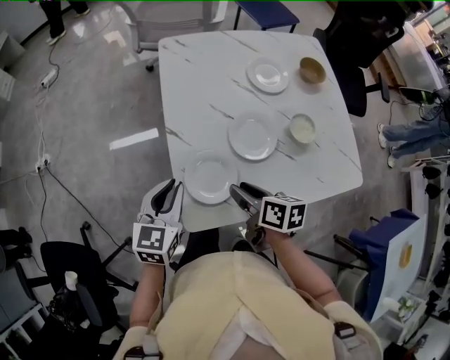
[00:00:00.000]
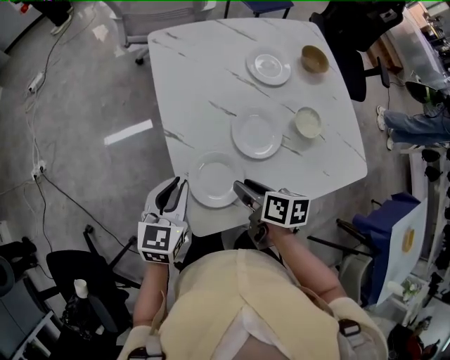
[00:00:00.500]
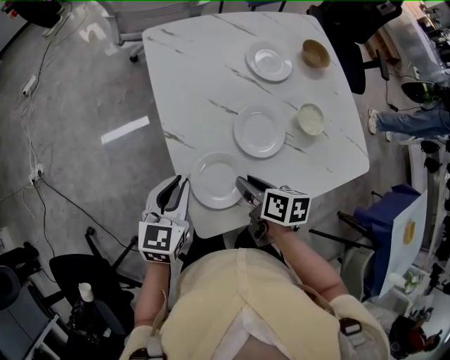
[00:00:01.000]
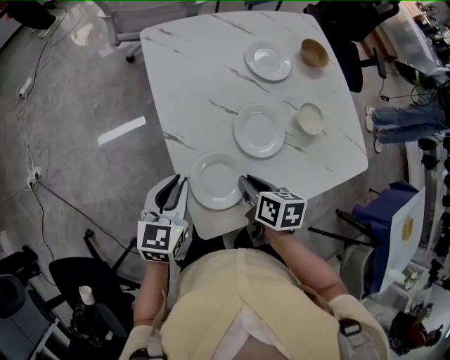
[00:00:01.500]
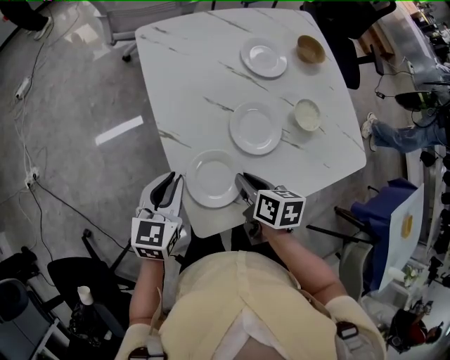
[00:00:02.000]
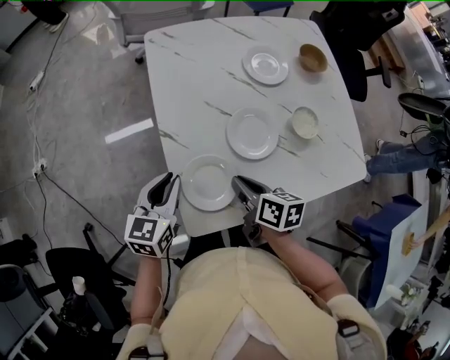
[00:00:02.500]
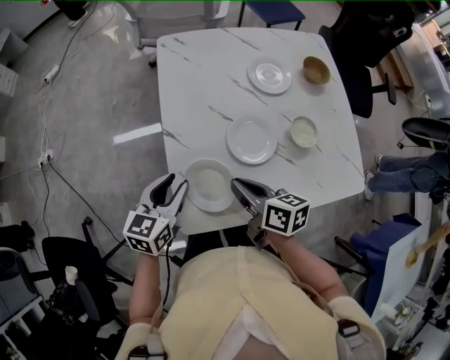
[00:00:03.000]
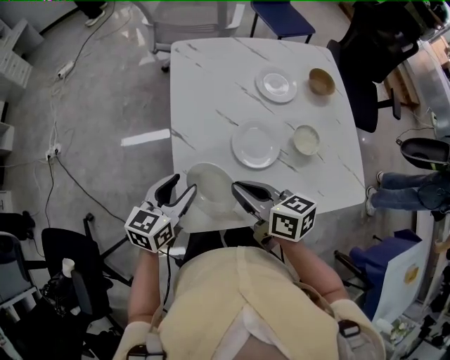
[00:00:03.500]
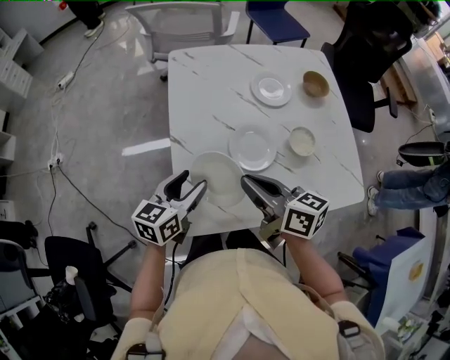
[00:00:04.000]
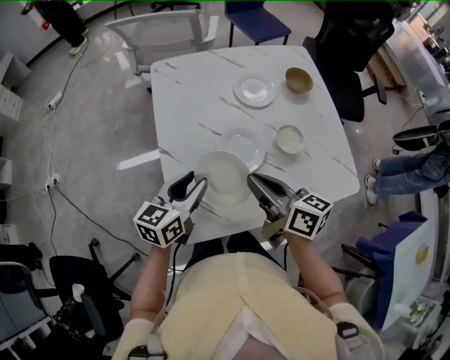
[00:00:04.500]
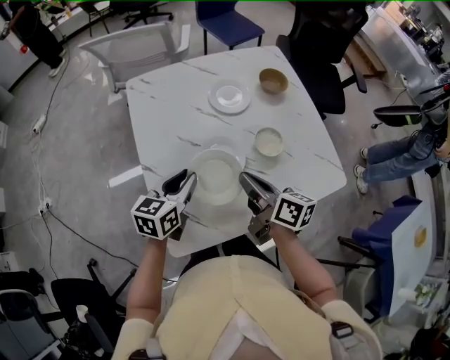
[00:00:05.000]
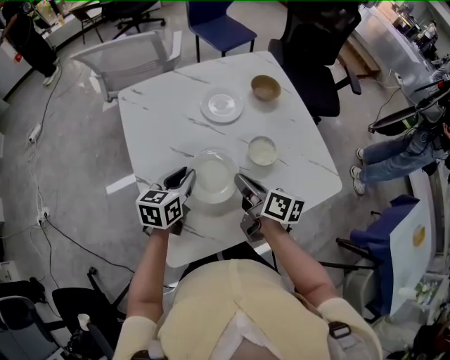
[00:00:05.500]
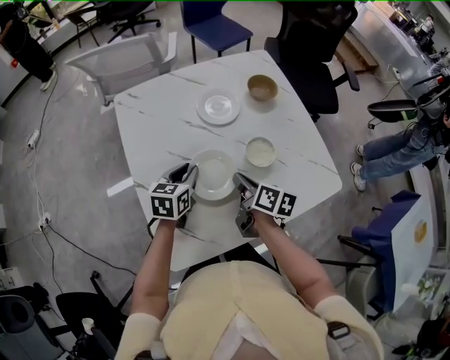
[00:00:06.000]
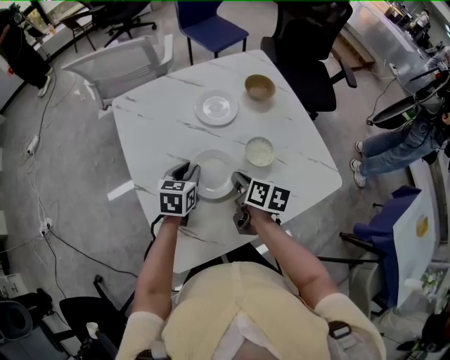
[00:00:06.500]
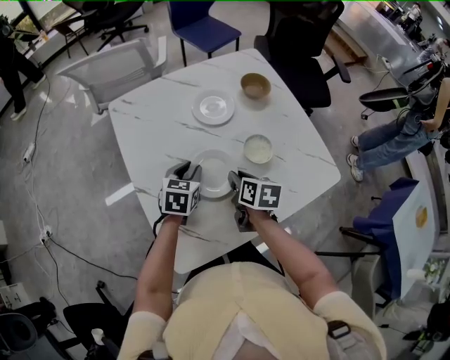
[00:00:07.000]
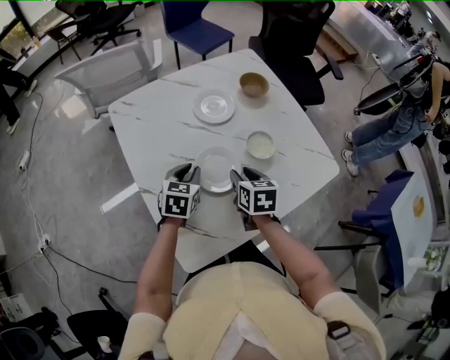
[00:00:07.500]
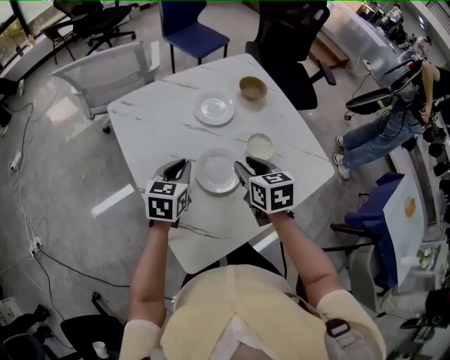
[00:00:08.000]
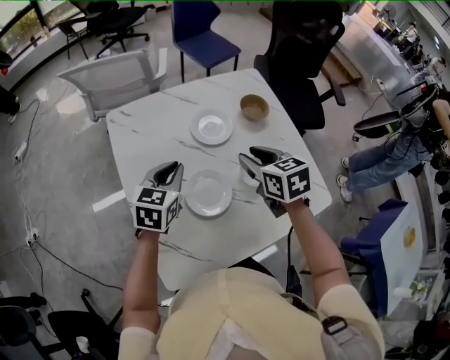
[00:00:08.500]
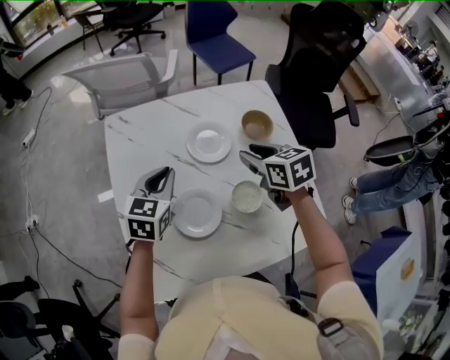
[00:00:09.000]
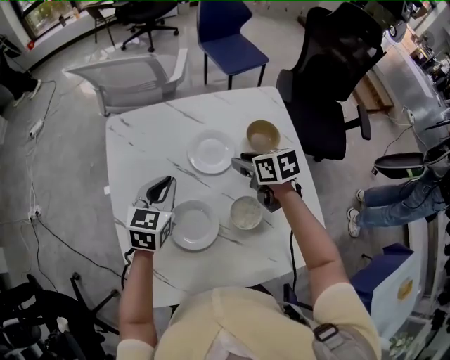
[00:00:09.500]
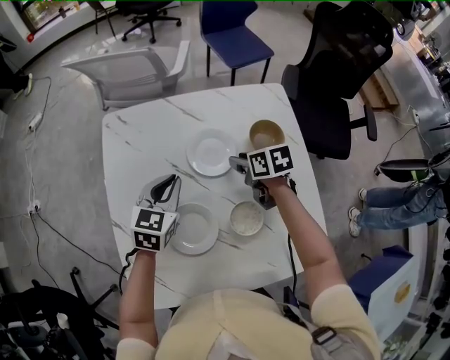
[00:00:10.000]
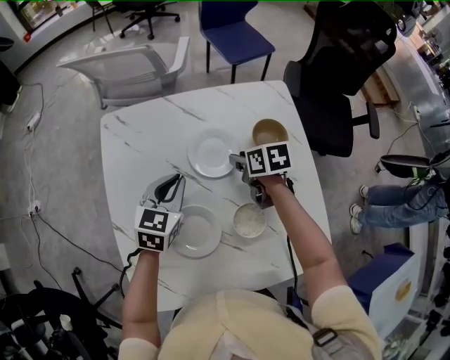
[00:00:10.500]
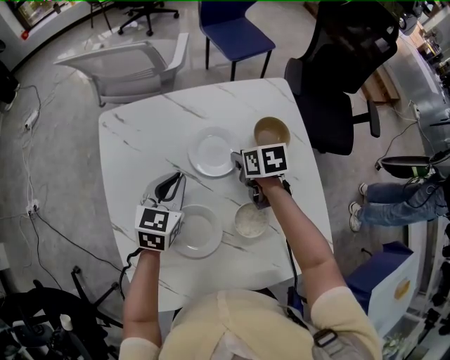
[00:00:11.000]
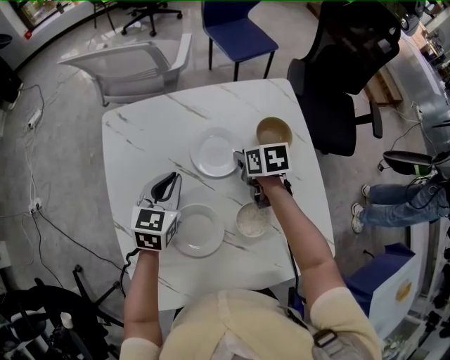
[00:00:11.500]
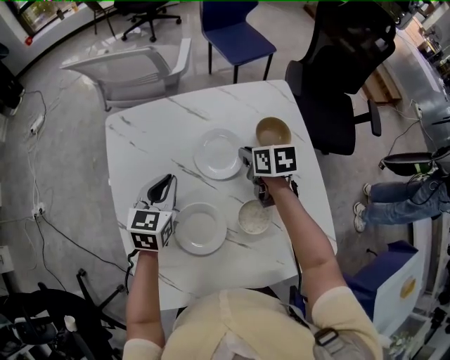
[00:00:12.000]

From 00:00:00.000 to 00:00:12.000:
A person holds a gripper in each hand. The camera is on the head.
From 00:00:00.000 to 00:00:02.000: The right gripper closes up. Meanwhile the left gripper shifts by some 5 cm.
From 00:00:02.000 to 00:00:04.000: The left gripper is displaced to the right by some 5 cm, and opens its fingers. The right gripper travels upward by some 15 cm, and points its fingers approximately 30 degrees further upward.
From 00:00:04.000 to 00:00:06.000: The right gripper shifts about 20 cm to the right, downward and forward, and rotates some 40 degrees, while the left gripper shifts about 15 cm forward and to the right, and closes up.
From 00:00:06.000 to 00:00:08.000: The left gripper ends up approximately 5 cm from where it was. The right gripper heads upward, covering roughly 5 cm, changes its angle by some 40 degrees, and opens.
From 00:00:08.000 to 00:00:10.000: The left gripper shifts by approximately 15 cm. The right gripper moves roughly 25 cm, and changes its angle by about 30 degrees.
From 00:00:10.000 to 00:00:12.000: The right gripper closes up.

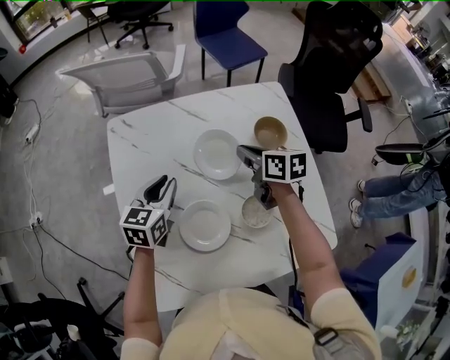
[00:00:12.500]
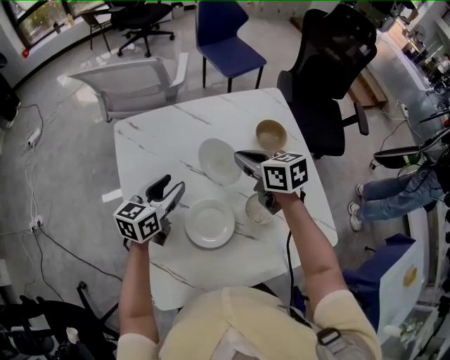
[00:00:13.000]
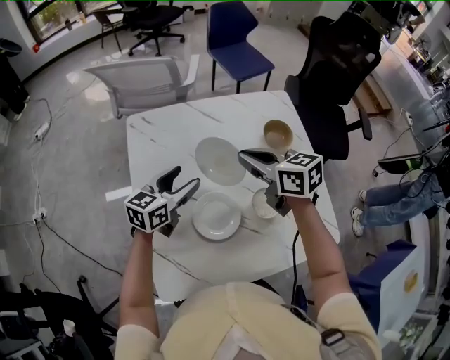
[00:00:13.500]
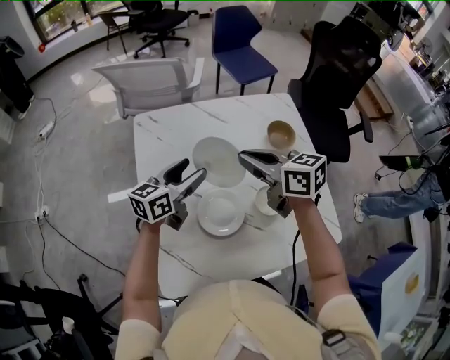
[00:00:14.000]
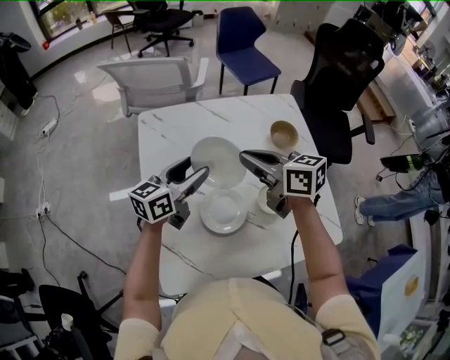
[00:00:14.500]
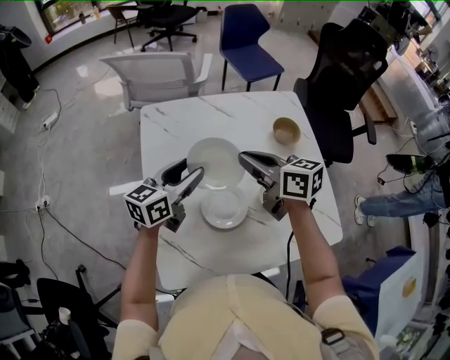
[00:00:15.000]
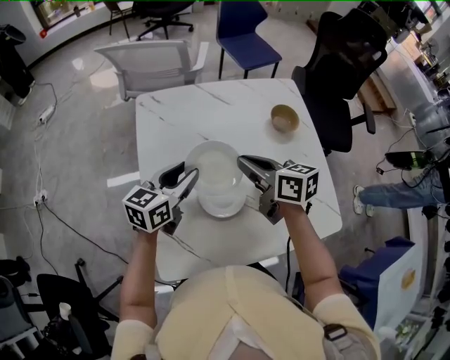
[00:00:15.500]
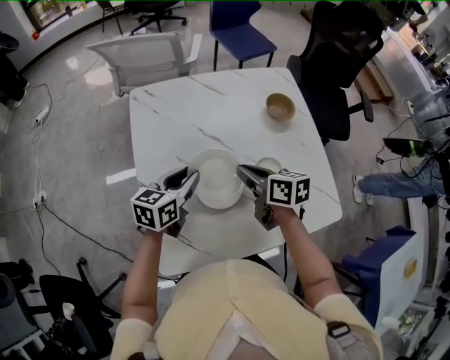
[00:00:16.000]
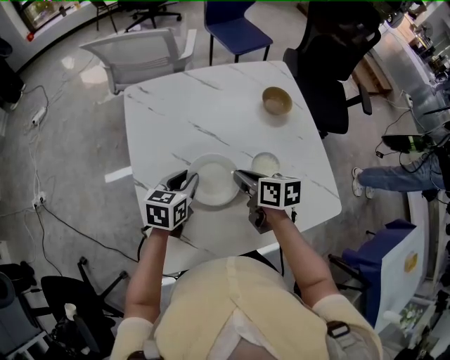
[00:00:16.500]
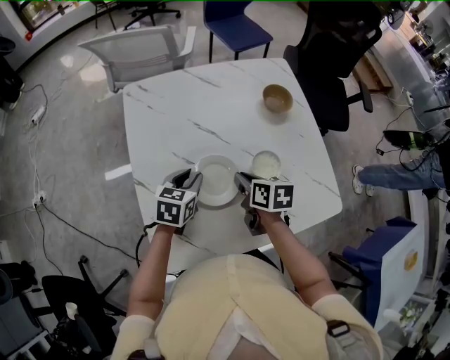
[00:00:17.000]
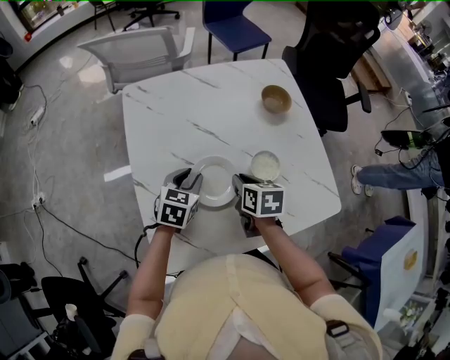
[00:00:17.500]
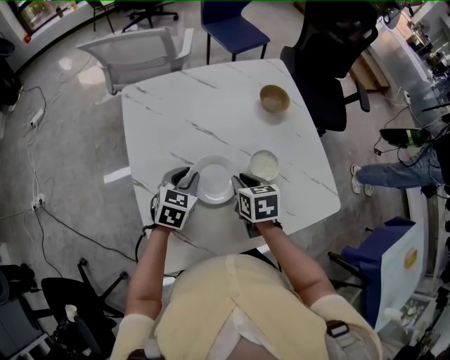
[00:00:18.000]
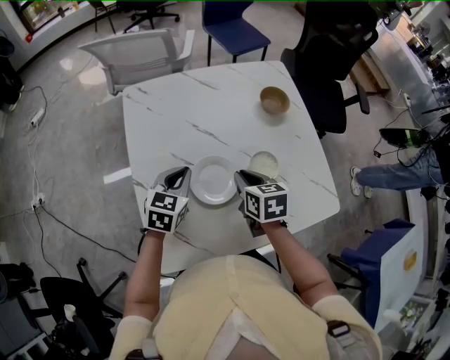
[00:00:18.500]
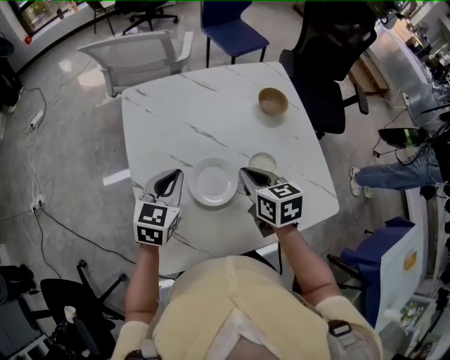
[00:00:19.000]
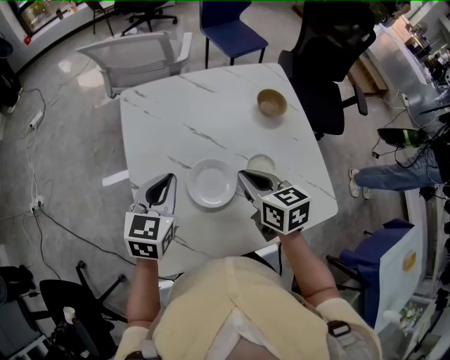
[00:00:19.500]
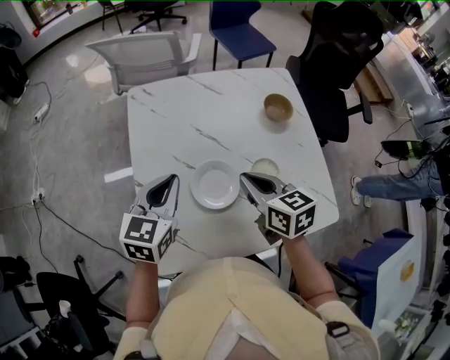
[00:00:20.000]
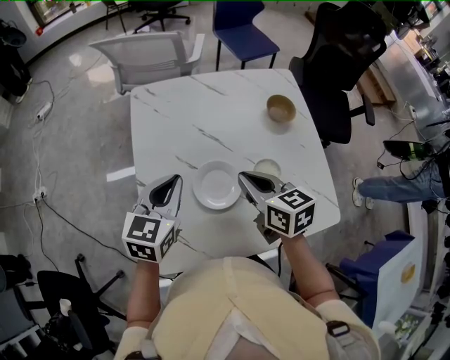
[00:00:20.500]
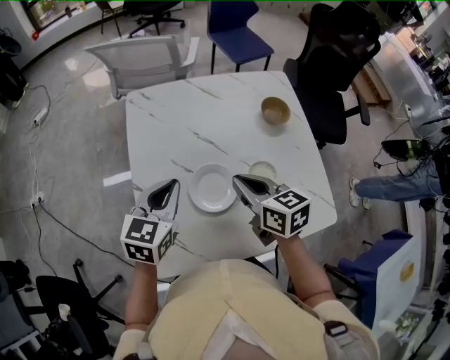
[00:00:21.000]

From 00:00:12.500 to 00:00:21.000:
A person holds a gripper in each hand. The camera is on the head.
From 00:00:12.500 to 00:00:14.500: The left gripper travels upward by some 10 cm, turns by roughly 30 degrees, and opens up. The right gripper travels upward, to the left and backward by about 20 cm, and changes its angle by approximately 20 degrees.
From 00:00:14.500 to 00:00:16.500: Both grippers move downward and backward, approximately 15 cm. The right gripper changes its angle by about 30 degrees. The left gripper rotates approximately 30 degrees, and closes up.
From 00:00:16.500 to 00:00:19.000: The left gripper moves upward, roughly 5 cm, while the right gripper changes place by about 5 cm, and rotates some 20 degrees.
From 00:00:19.000 to 00:00:21.000: The right gripper ends up about 5 cm from where it was. The left gripper shifts by about 5 cm.

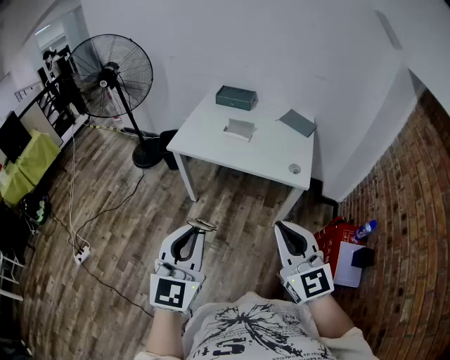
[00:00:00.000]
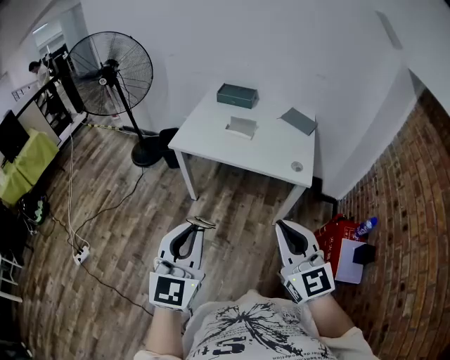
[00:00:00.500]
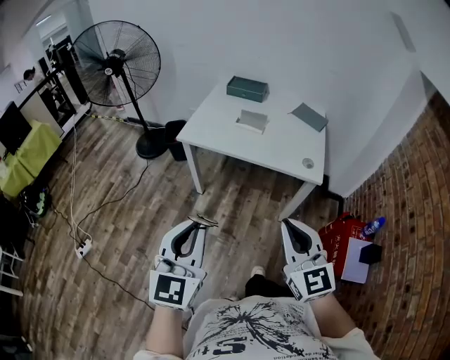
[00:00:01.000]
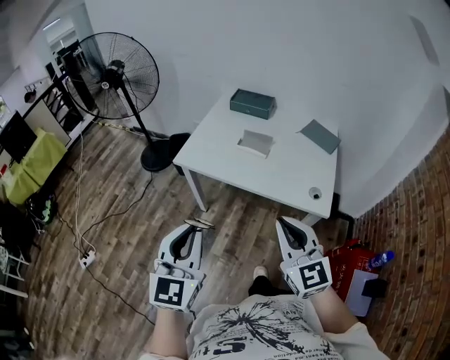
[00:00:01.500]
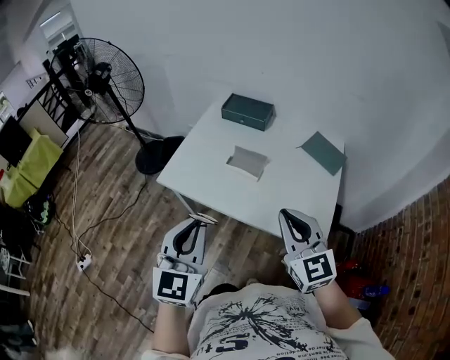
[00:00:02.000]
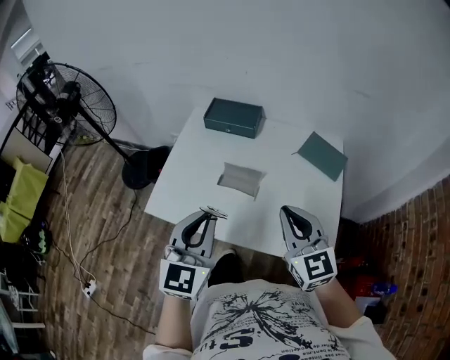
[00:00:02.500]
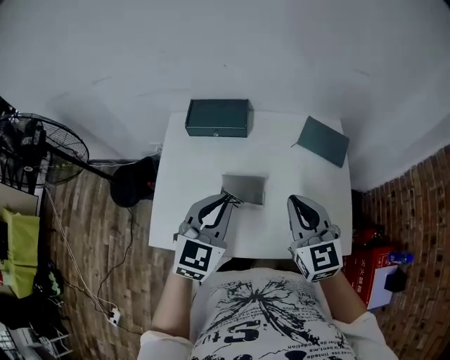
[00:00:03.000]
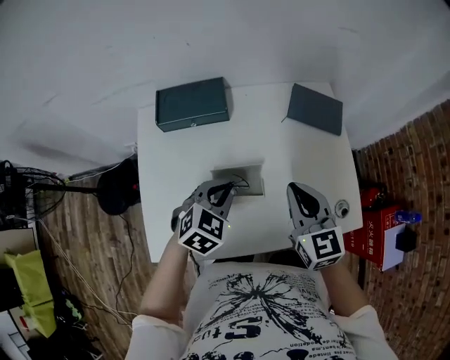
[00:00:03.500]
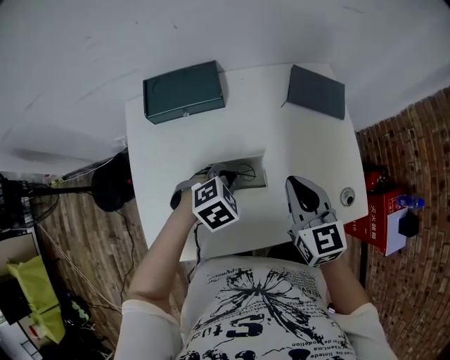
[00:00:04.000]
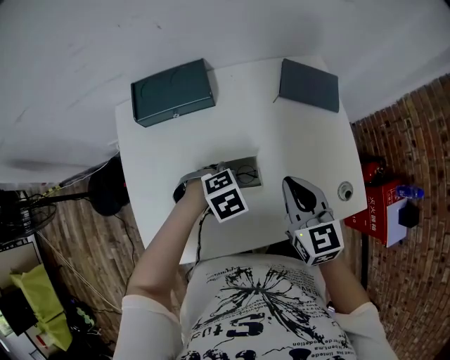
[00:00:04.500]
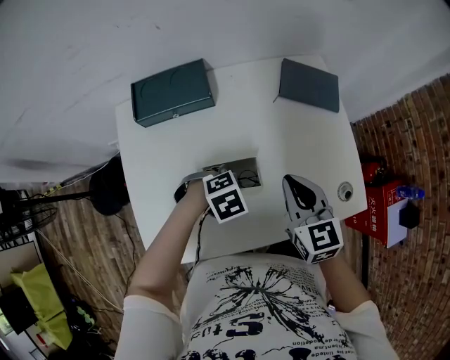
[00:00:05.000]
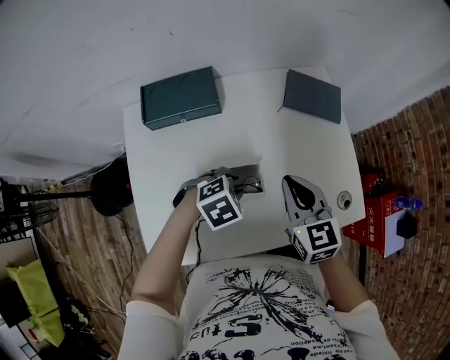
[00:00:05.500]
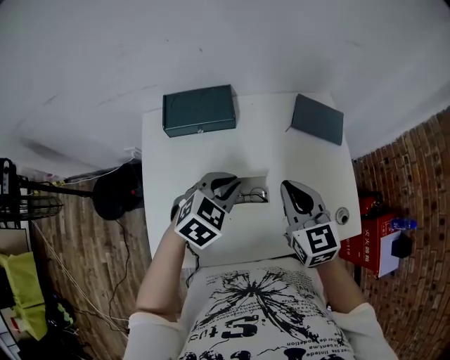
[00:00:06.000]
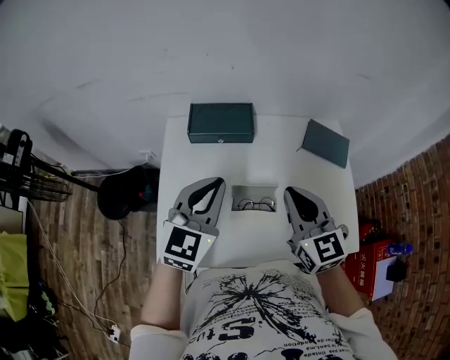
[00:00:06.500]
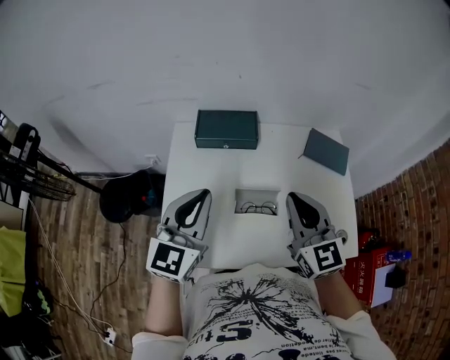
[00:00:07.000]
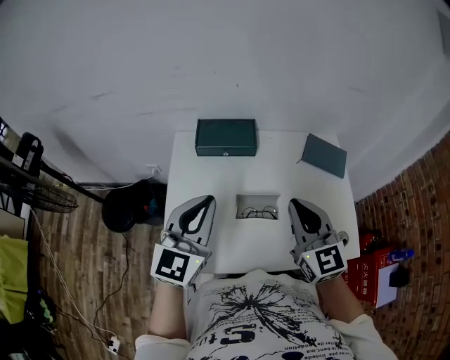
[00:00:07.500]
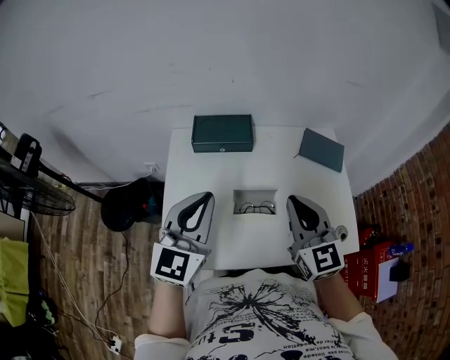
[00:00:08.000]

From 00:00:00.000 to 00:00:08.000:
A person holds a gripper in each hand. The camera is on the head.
From 00:00:00.000 to 00:00:02.000: The grippers both shift forward by about 35 cm.
From 00:00:02.000 to 00:00:04.000: The left gripper shifts by some 50 cm, and points its fingers about 60 degrees further downward. Meanwhile the right gripper moves roughly 30 cm, and changes its angle by about 40 degrees.
From 00:00:04.000 to 00:00:06.000: The right gripper changes place by approximately 5 cm, while the left gripper goes some 10 cm upward, and changes its angle by approximately 30 degrees.
From 00:00:06.000 to 00:00:08.000: The right gripper shifts roughly 10 cm upward and backward. Meanwhile the left gripper goes about 25 cm upward, to the left and backward, and tilts its fingers roughly 40 degrees upward.
